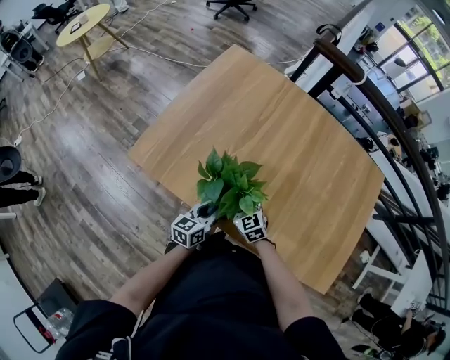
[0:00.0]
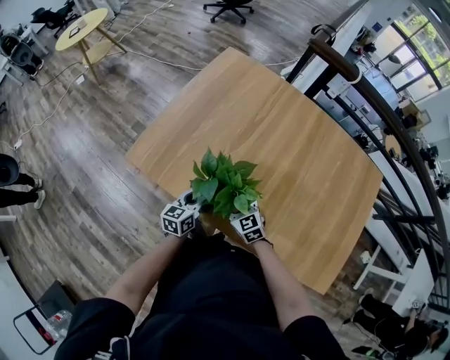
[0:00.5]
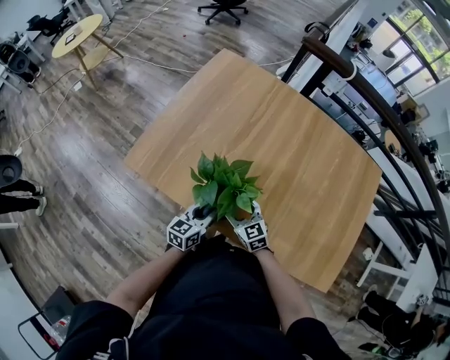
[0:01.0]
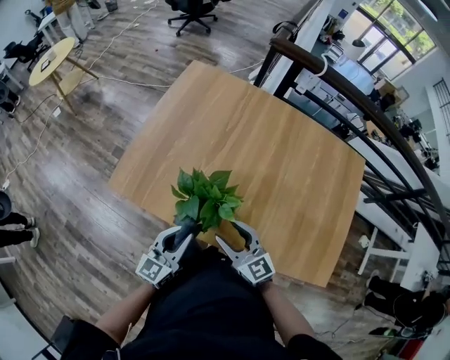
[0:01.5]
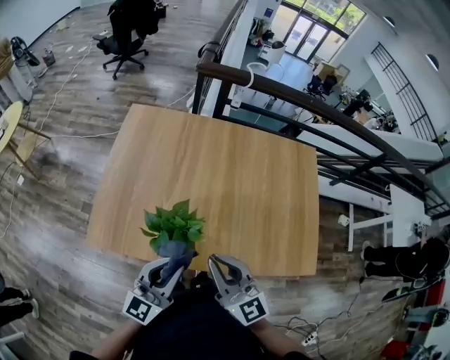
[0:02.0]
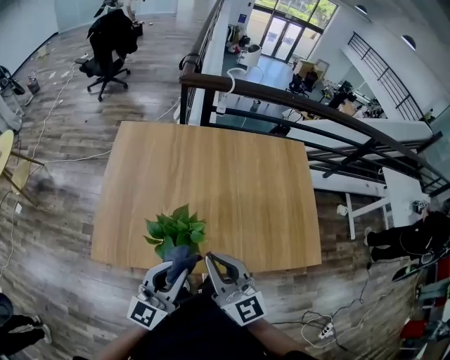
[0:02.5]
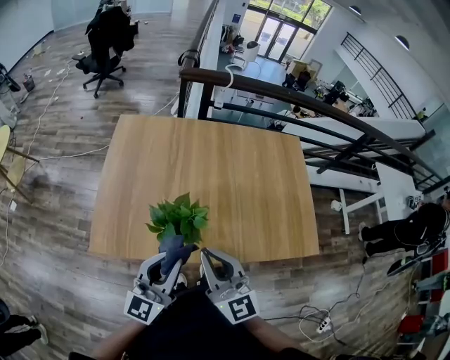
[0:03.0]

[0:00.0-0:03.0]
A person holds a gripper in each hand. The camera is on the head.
0:00.0 to 0:01.5: The right gripper moves upward and backward, some 15 cm, and swivels about 20 degrees; the left gripper shifts approximately 15 cm upward, and swivels approximately 20 degrees.
0:01.5 to 0:03.0: The grippers both shift upward by some 15 cm. The left gripper swivels roughly 20 degrees, while the right gripper turns by some 40 degrees, and closes up.

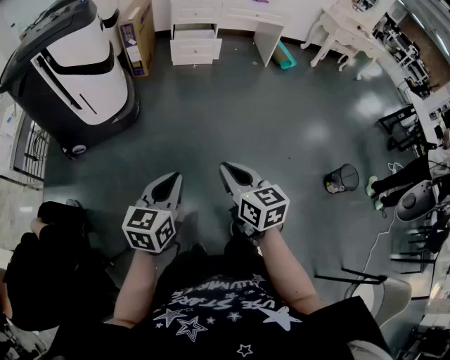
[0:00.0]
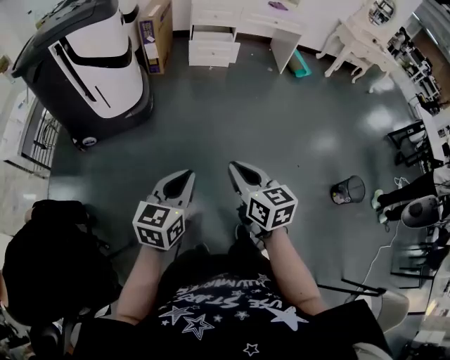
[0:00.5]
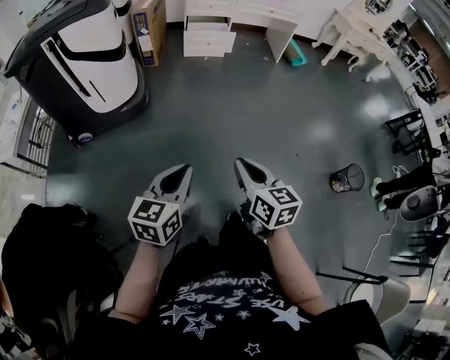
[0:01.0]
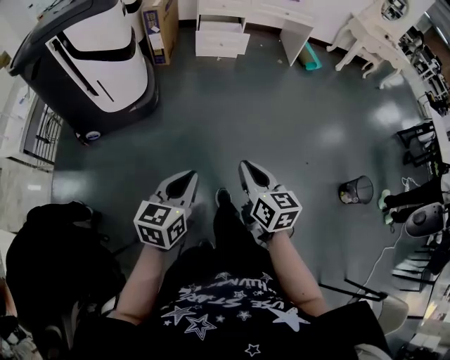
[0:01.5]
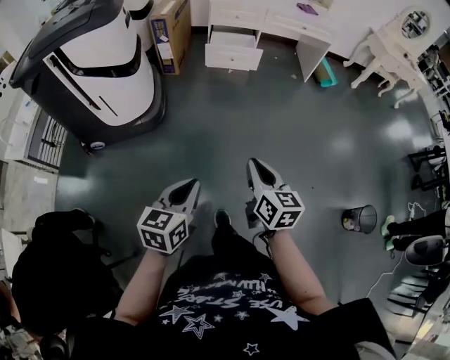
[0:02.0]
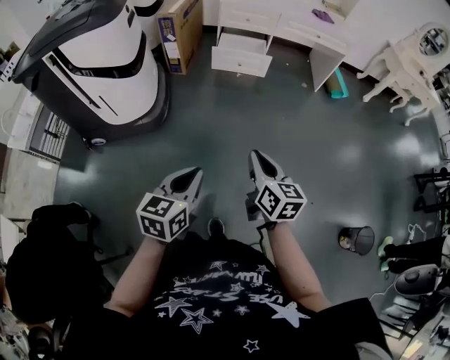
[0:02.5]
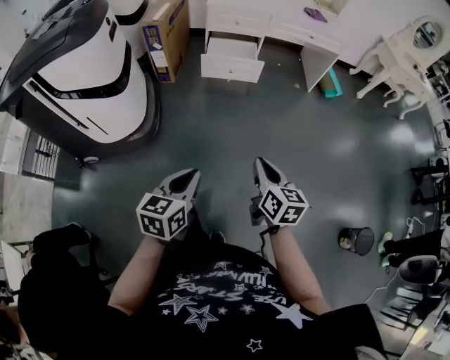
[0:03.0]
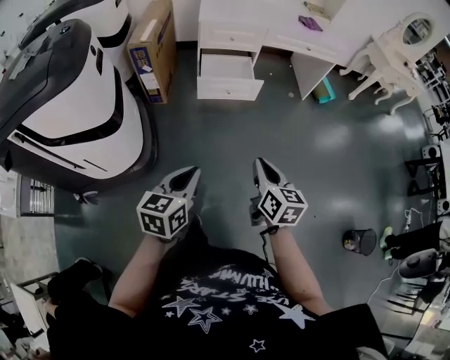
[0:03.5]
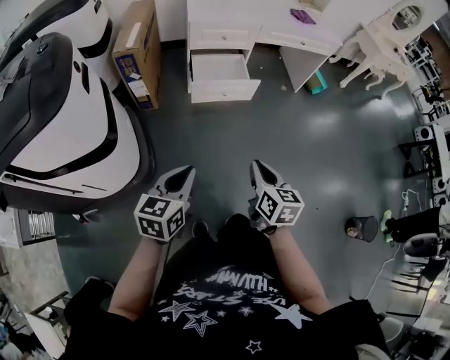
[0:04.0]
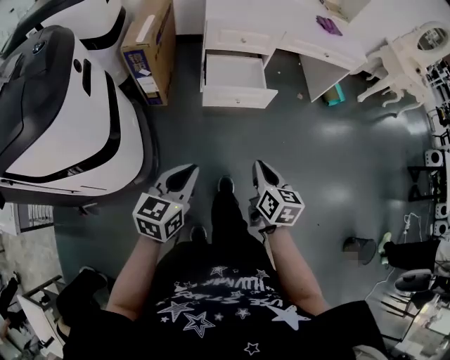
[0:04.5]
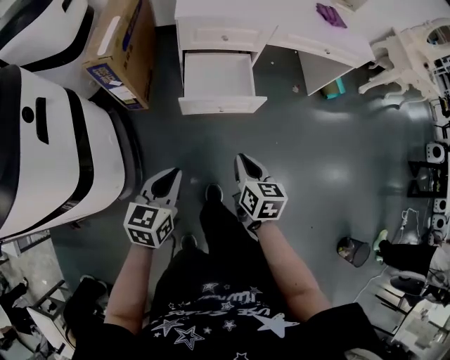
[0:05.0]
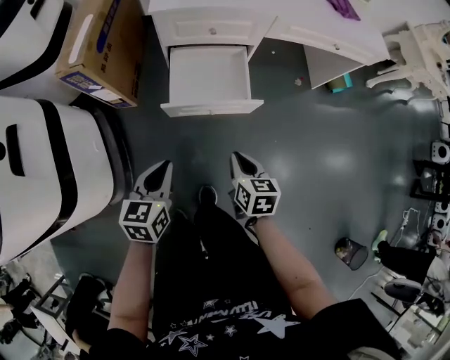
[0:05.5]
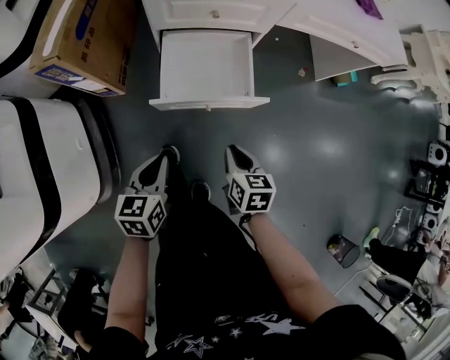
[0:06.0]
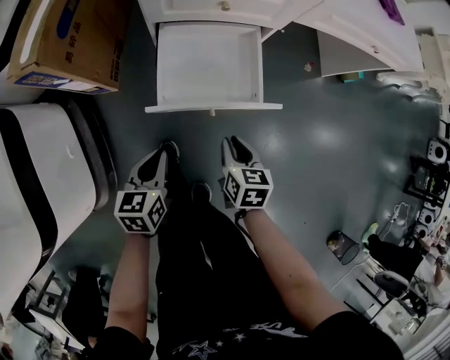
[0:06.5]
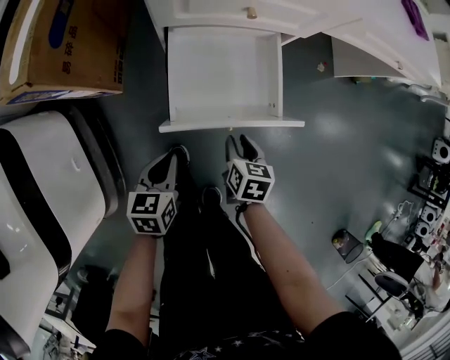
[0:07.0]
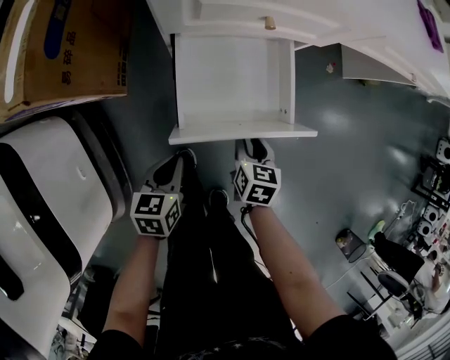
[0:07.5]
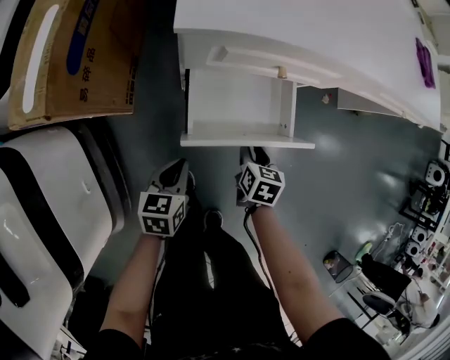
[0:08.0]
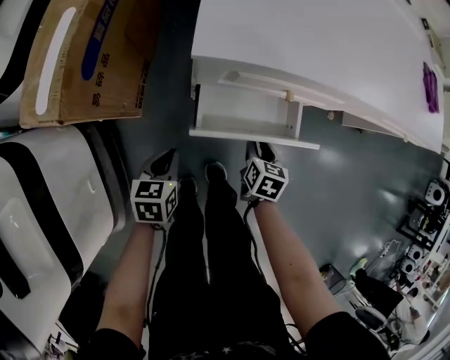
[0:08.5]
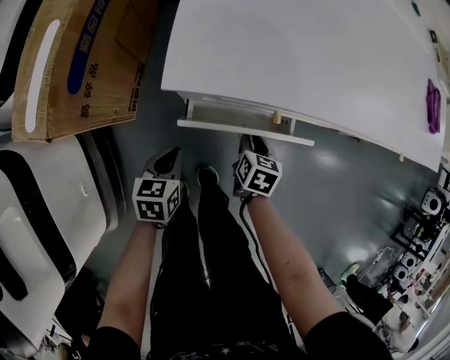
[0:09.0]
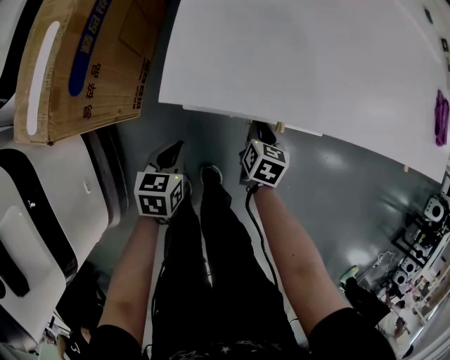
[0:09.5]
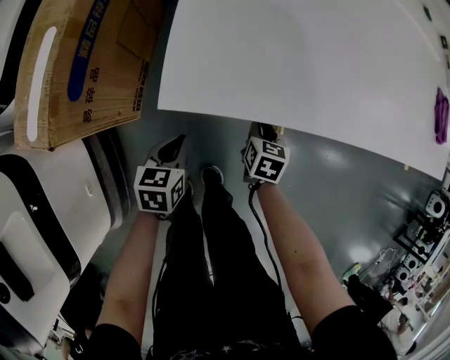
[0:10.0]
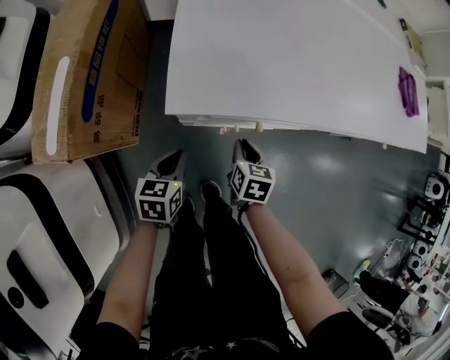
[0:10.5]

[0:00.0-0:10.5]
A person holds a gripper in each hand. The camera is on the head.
0:00.0 to 0:02.0: Both grippers travel together forward, approximately 20 cm.
0:02.0 to 0:04.0: Both grippers move forward, approximately 40 cm.
0:04.0 to 0:06.5: Both grippers are carried forward, about 40 cm. Both grippers move downward, approximately 30 cm. The left gripper swivels approximately 20 degrees, while the right gripper rotates about 20 degrees.
0:06.5 to 0:08.5: The left gripper shifts some 20 cm forward, to the left and downward. The right gripper travels forward by some 20 cm.
0:08.5 to 0:10.5: The right gripper heads upward and forward, covering approximately 10 cm. Meanwhile the left gripper goes approximately 10 cm forward and upward.

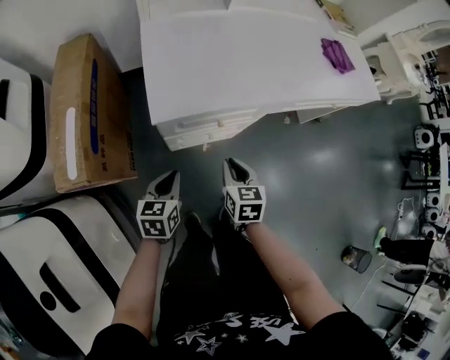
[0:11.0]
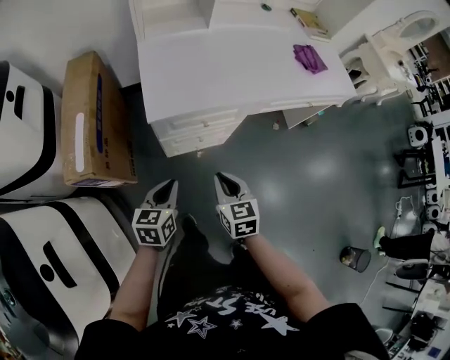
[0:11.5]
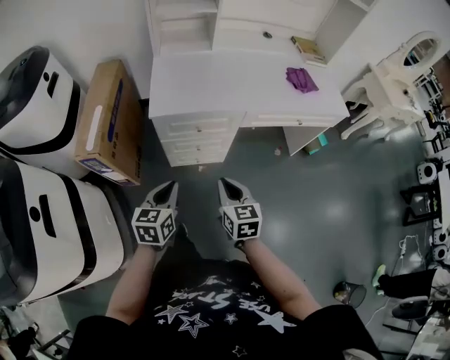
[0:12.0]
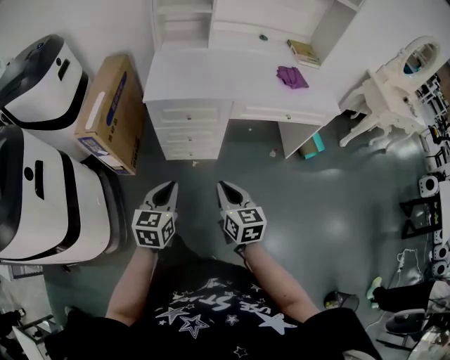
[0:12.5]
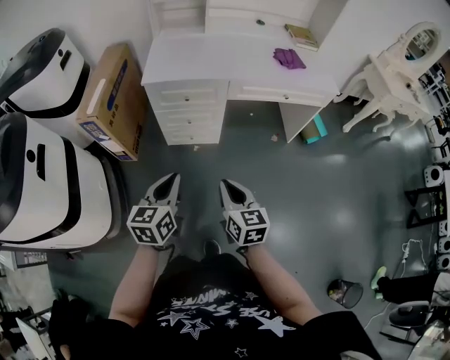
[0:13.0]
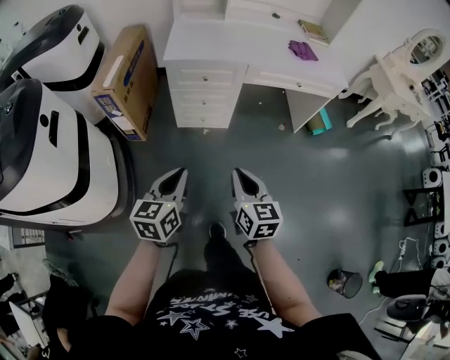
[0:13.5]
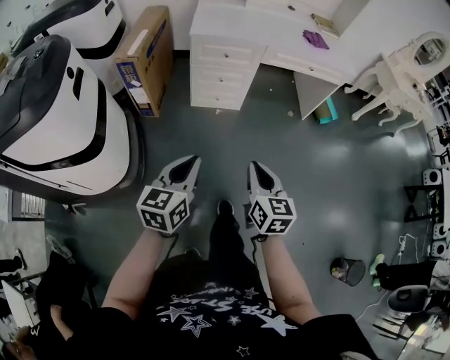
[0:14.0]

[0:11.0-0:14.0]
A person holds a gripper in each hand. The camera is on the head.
0:11.0 to 0:12.5: The left gripper goes approximately 35 cm backward, to the right and upward; the right gripper is displaced backward, upward and to the right by approximately 30 cm, and swivels about 30 degrees.
0:12.5 to 0:14.0: Both grippers move backward, about 30 cm.

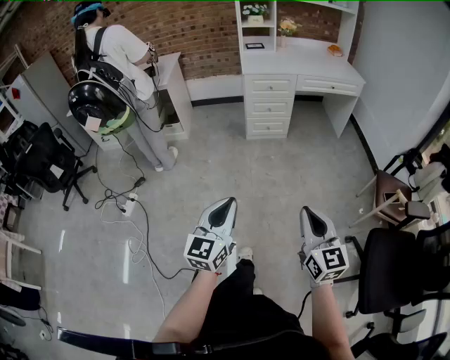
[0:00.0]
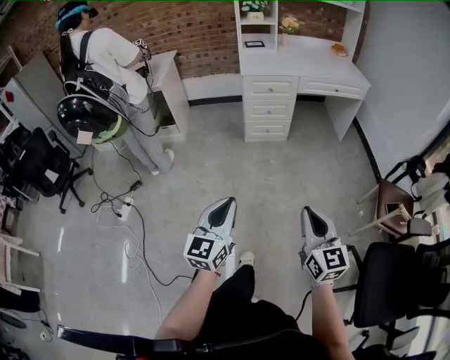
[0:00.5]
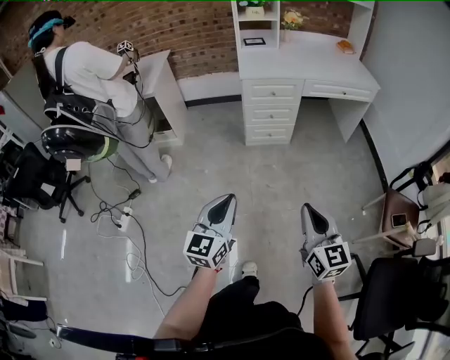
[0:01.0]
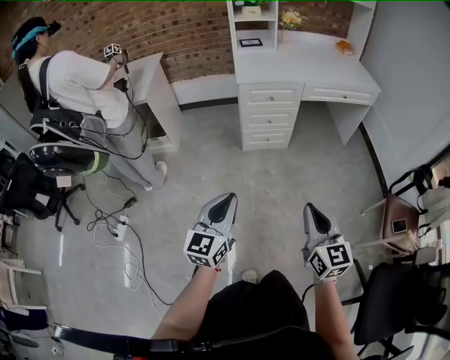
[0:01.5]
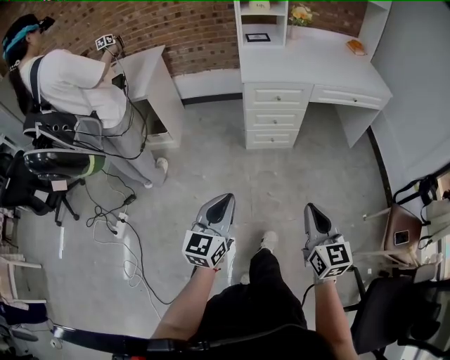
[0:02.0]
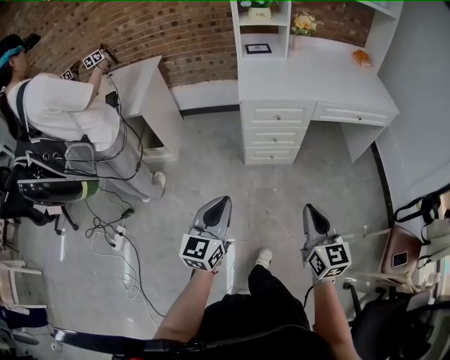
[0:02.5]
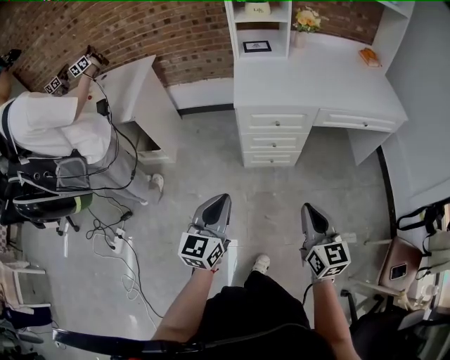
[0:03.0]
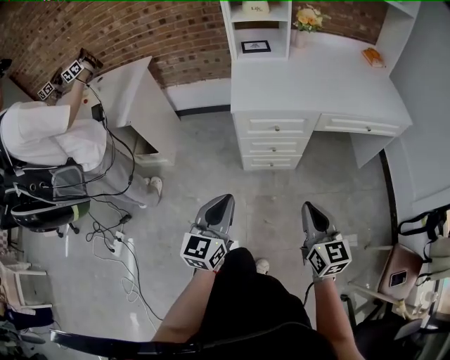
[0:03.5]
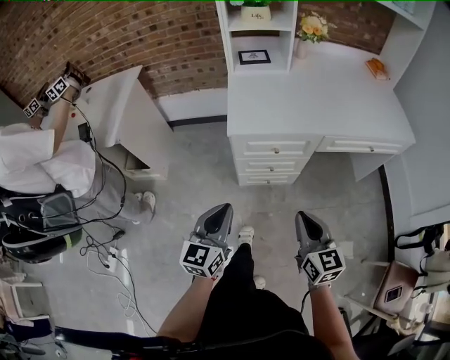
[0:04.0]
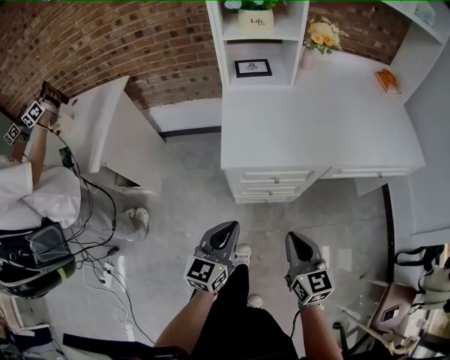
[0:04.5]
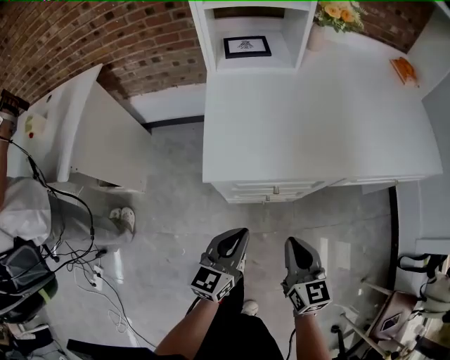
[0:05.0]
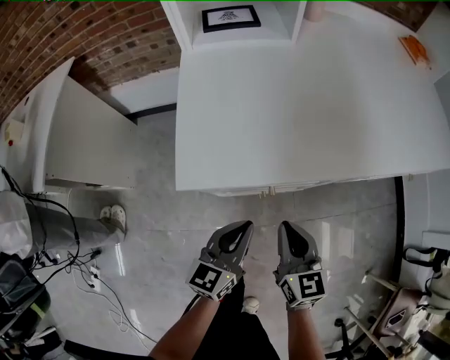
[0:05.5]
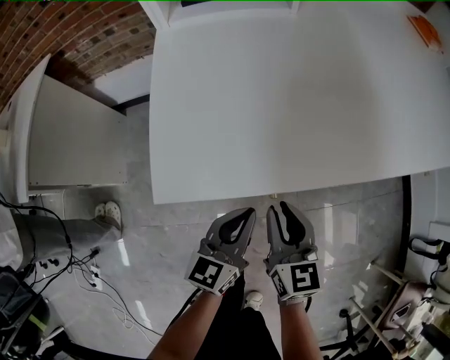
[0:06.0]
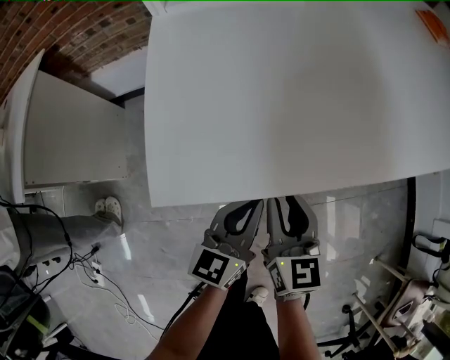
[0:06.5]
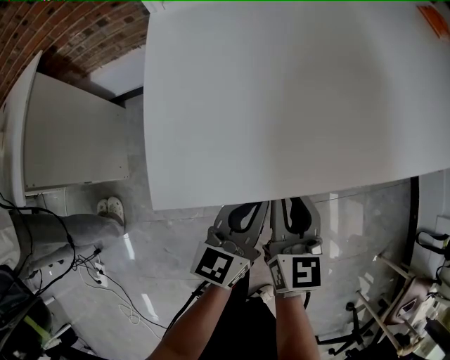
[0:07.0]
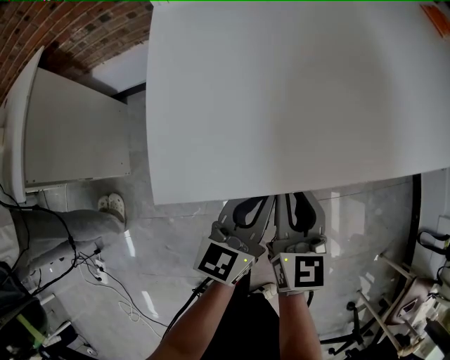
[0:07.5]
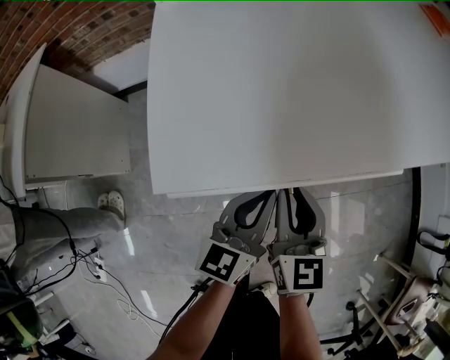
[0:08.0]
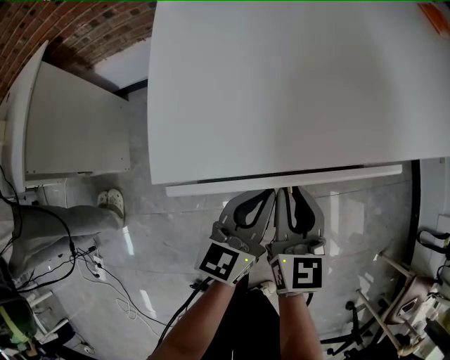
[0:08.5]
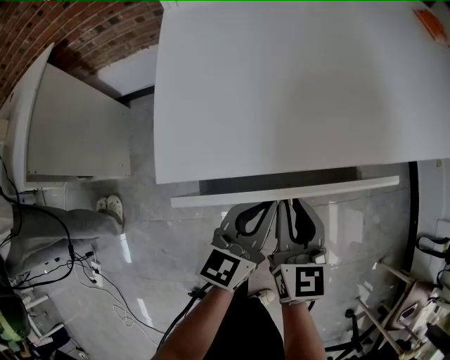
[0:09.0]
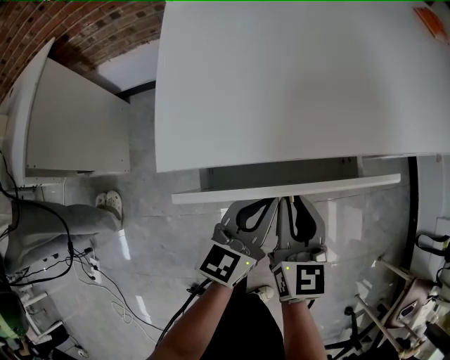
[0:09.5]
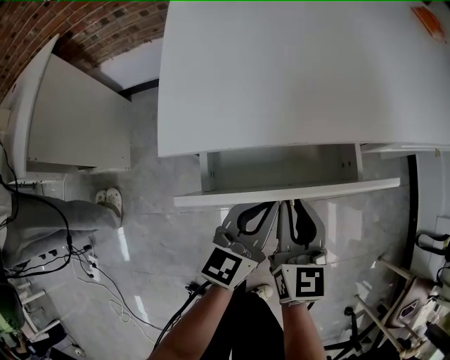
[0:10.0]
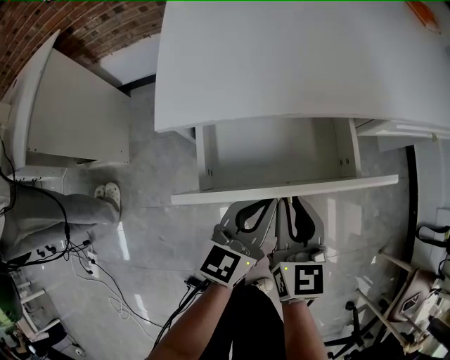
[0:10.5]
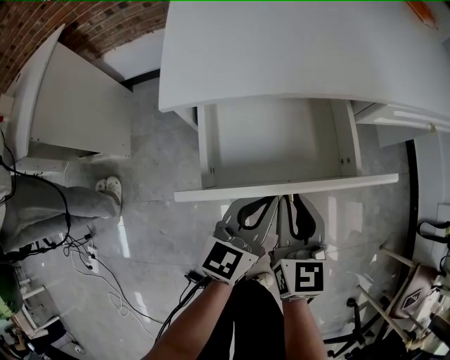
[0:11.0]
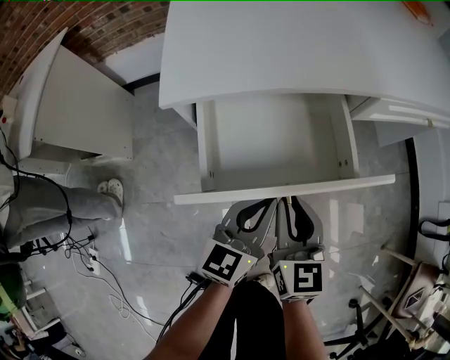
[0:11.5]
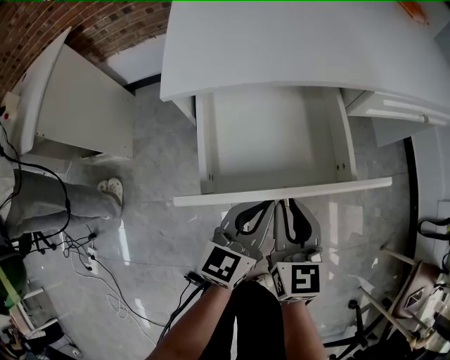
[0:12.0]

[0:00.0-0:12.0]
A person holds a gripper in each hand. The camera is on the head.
0:00.0 to 0:02.0: Both grippers travel together forward, some 35 cm.
0:02.0 to 0:04.0: The two grippers go some 35 cm forward.
0:04.0 to 0:06.0: The two grippers go about 35 cm forward and downward.
0:06.0 to 0:08.0: There are only small adjustments of the grippers.
0:08.0 to 0:10.0: Both grippers travel together backward, roughly 5 cm.
0:10.0 to 0:12.0: Both grippers travel together backward, about 10 cm.
